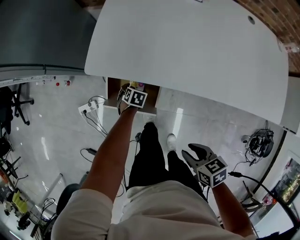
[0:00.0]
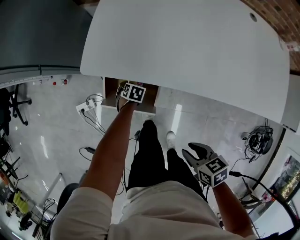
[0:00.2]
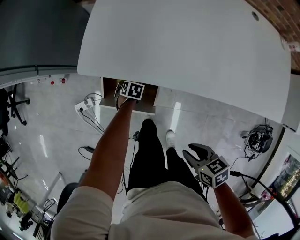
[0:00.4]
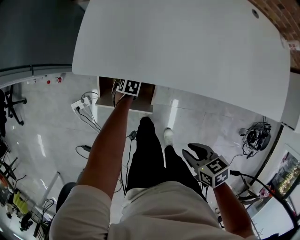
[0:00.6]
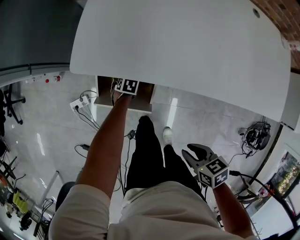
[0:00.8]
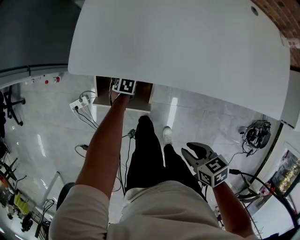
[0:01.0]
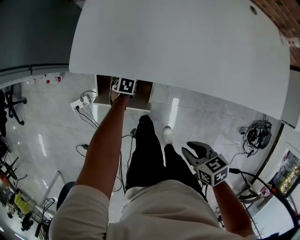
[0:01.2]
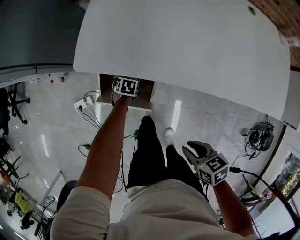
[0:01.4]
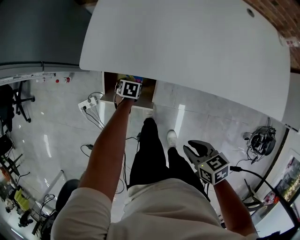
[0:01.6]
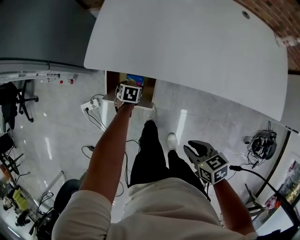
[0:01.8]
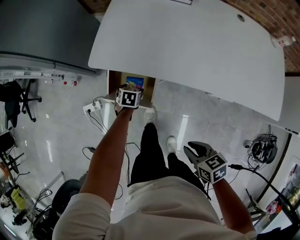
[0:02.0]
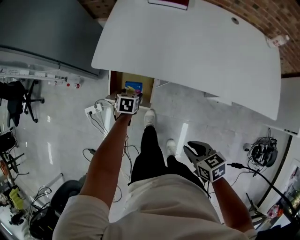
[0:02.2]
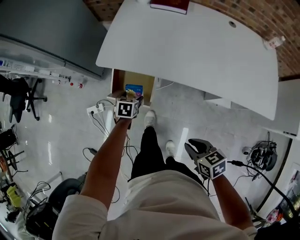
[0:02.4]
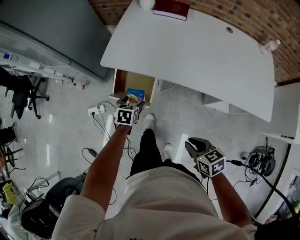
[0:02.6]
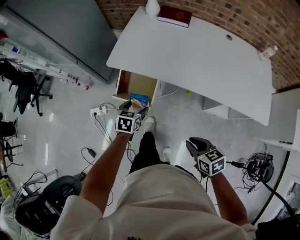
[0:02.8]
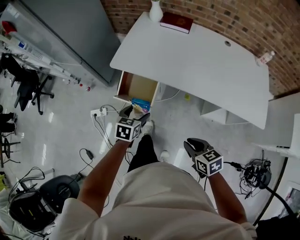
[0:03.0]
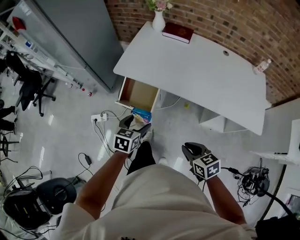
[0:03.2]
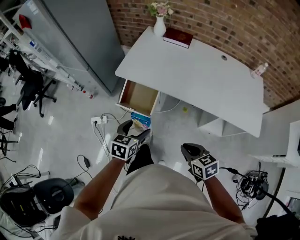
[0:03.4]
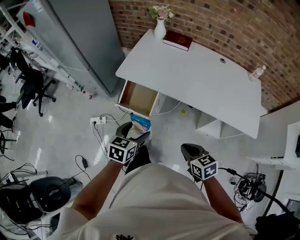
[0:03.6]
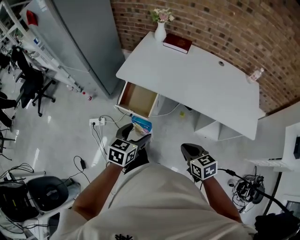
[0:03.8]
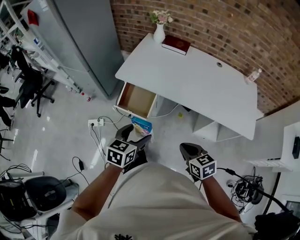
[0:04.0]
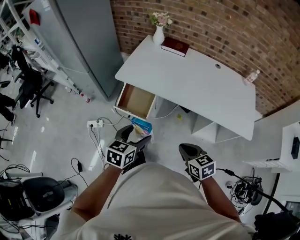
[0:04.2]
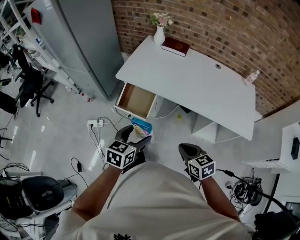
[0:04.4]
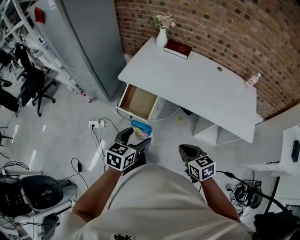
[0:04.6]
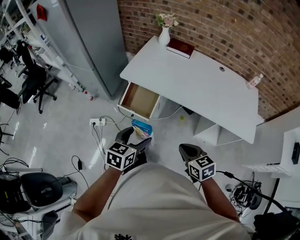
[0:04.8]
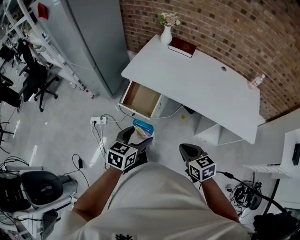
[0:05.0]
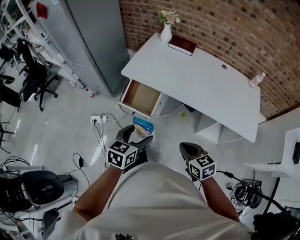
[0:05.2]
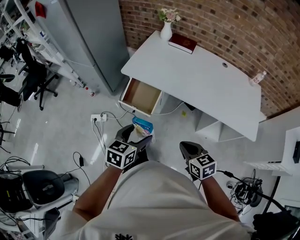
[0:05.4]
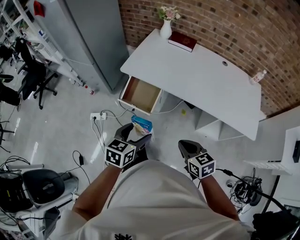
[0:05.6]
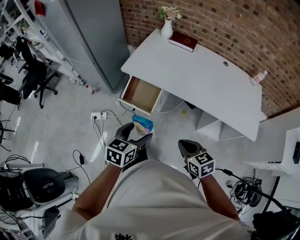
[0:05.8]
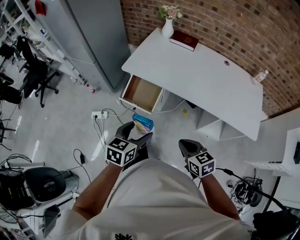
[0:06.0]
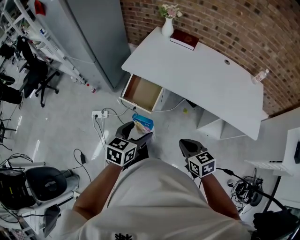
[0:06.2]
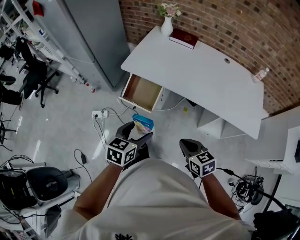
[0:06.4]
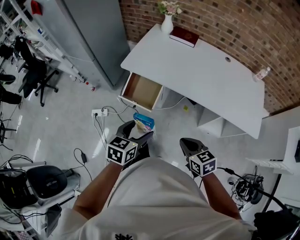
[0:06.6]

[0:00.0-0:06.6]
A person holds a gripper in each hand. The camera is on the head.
0.0 to 1.6 s: The left gripper moves approximately 10 cm downward and comes back.
1.6 to 3.2 s: The right gripper heads upward and backward, covering roughly 20 cm, and changes its angle by approximately 20 degrees, while the left gripper goes roughly 50 cm upward and backward, and angles its fingers upward, by approximately 30 degrees.
3.2 to 5.0 s: The right gripper changes place by roughly 5 cm. Meanwhile the left gripper shifts some 15 cm backward and upward.
5.0 to 6.6 s: The grippers make only small movements.

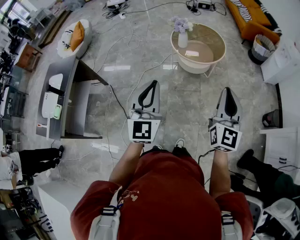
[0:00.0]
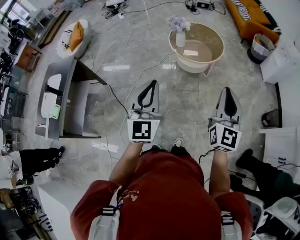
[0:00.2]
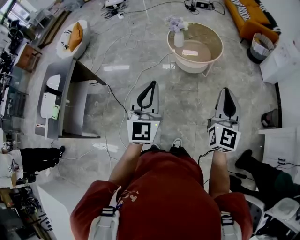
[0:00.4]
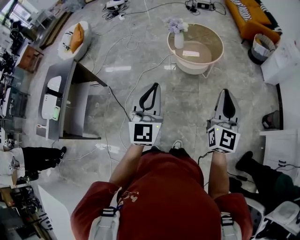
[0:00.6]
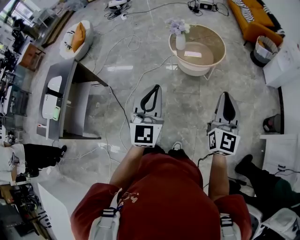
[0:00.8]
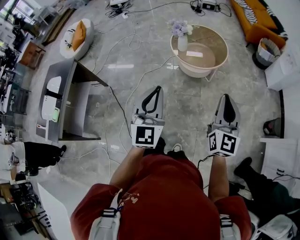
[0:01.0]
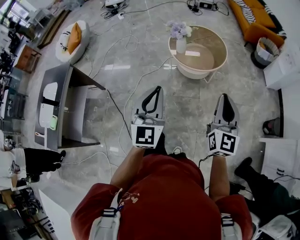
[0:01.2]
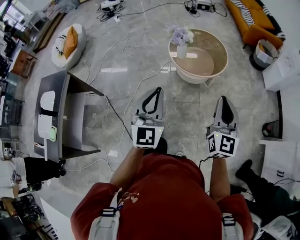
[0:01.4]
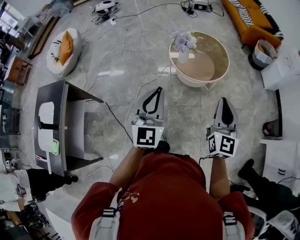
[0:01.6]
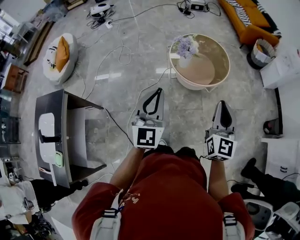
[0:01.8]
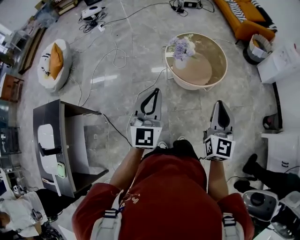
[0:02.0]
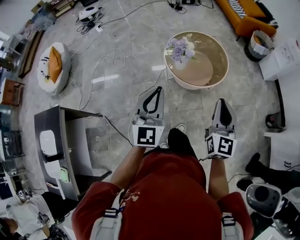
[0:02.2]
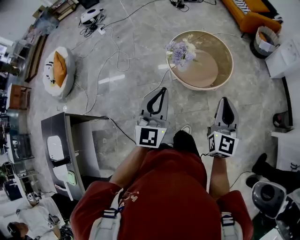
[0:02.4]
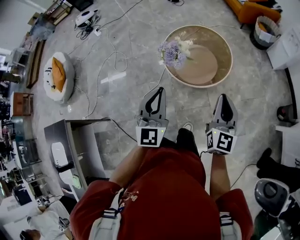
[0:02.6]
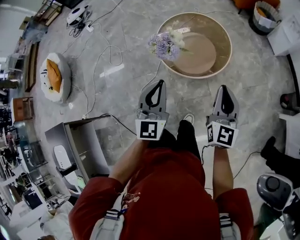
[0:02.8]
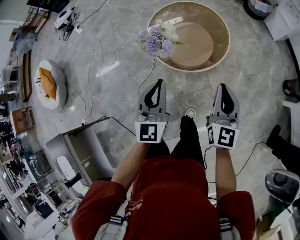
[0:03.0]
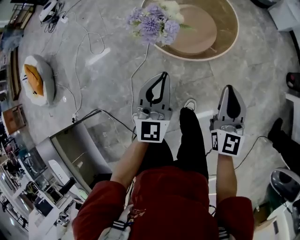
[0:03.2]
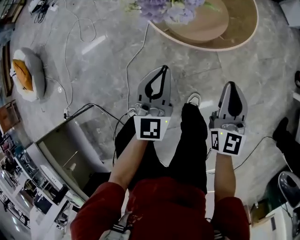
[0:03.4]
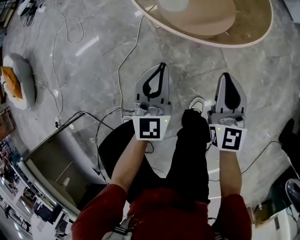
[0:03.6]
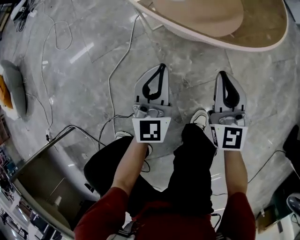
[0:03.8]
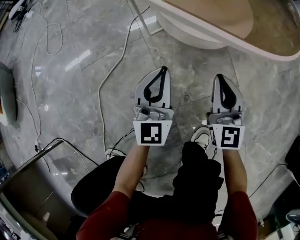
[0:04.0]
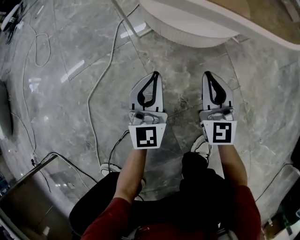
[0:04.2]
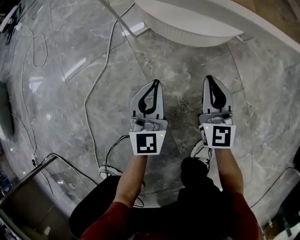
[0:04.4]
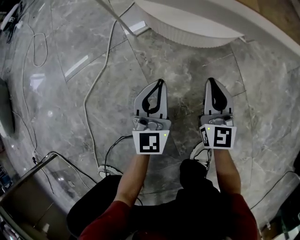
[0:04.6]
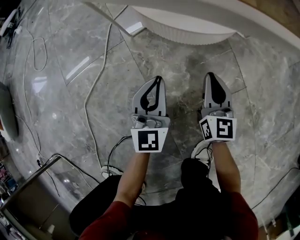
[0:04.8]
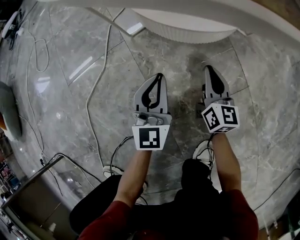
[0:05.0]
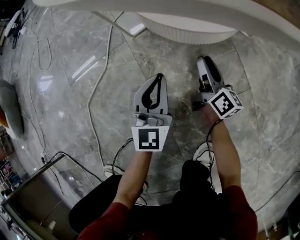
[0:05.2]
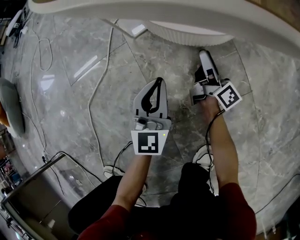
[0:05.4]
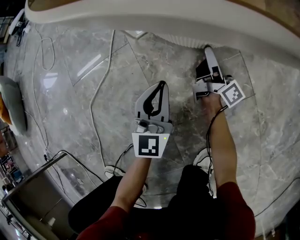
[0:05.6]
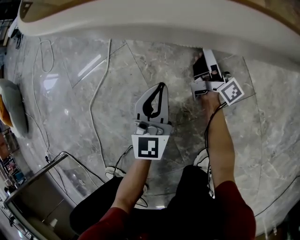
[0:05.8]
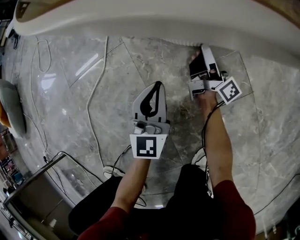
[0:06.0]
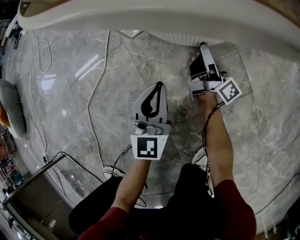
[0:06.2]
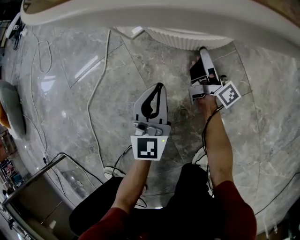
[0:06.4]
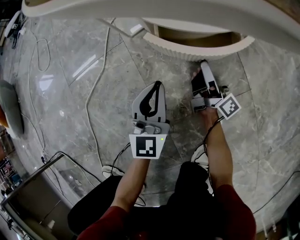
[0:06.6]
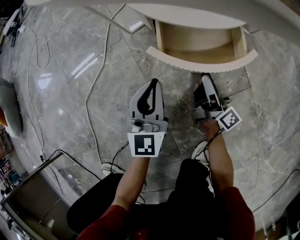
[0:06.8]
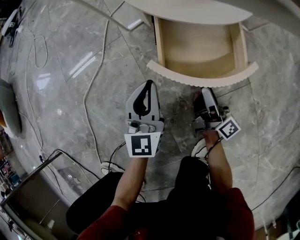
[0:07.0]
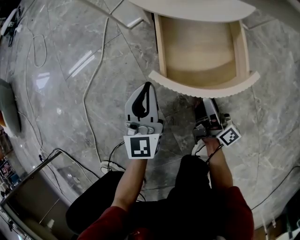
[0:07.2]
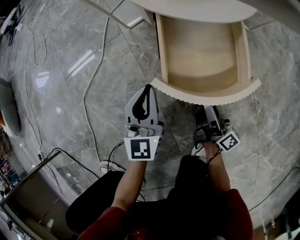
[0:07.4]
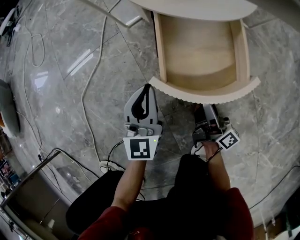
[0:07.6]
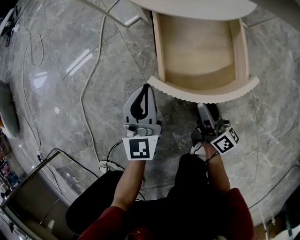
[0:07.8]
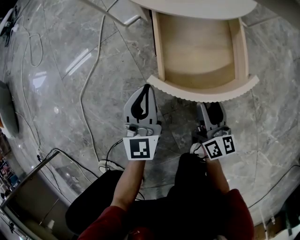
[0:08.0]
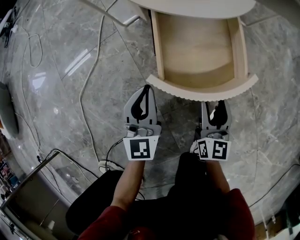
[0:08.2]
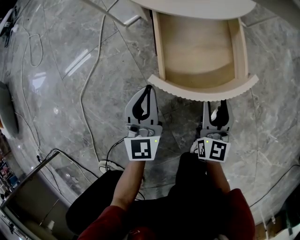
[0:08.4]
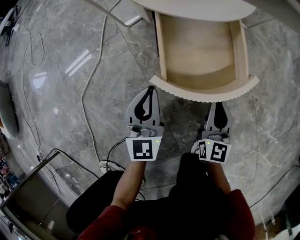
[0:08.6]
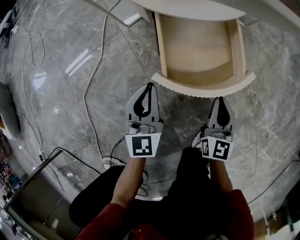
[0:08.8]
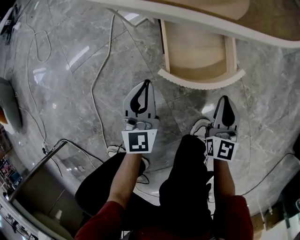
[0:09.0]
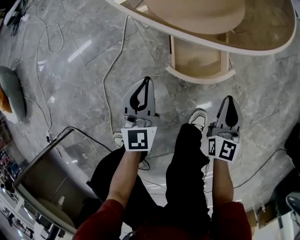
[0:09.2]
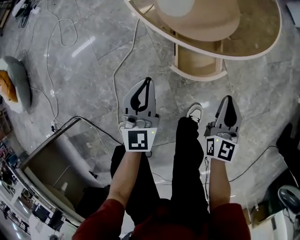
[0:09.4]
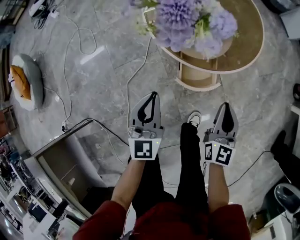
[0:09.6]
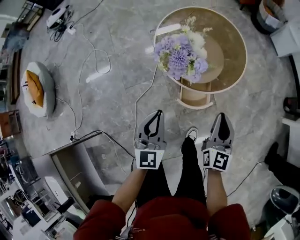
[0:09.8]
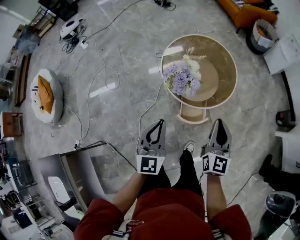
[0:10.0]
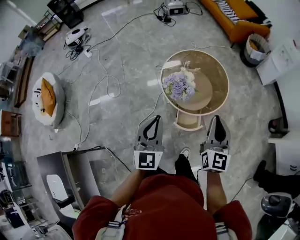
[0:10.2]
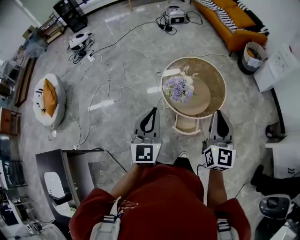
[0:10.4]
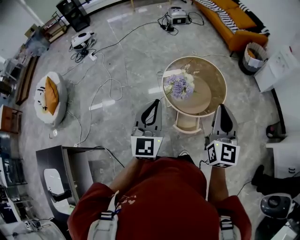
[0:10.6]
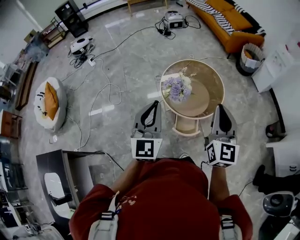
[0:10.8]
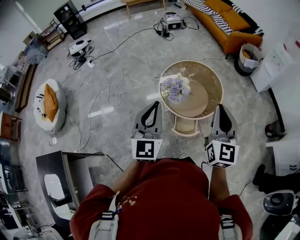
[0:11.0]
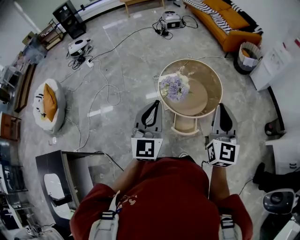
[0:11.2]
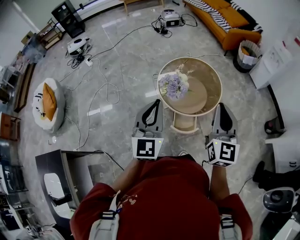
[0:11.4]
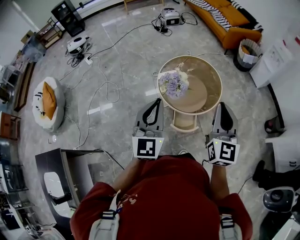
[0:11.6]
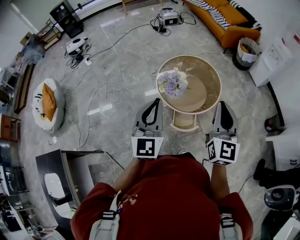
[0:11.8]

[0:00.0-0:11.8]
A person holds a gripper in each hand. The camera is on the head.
0.0 to 1.4 s: The grippers both shift forward by roughly 15 cm.
1.4 to 3.0 s: Both grippers move forward and downward, about 30 cm. The right gripper swivels about 20 degrees, while the left gripper changes its angle by approximately 20 degrees.
3.0 to 4.4 s: Both grippers move downward, roughly 70 cm.
4.4 to 6.0 s: The right gripper moves forward and downward, about 15 cm, twists some 80 degrees clockwise, seen from behind, and opens its fingers. Meanwhile the left gripper changes place by roughly 5 cm.
6.0 to 7.4 s: The left gripper moves approximately 5 cm, while the right gripper moves backward, about 20 cm.
7.4 to 8.8 s: The right gripper ends up approximately 5 cm from where it was, twists about 70 degrees counterclockwise, seen from behind, and closes.
8.8 to 10.4 s: Both grippers travel together upward, roughly 90 cm. The right gripper rotates some 20 degrees.
10.4 to 11.8 s: The left gripper shifts by about 5 cm. The right gripper moves roughly 5 cm.

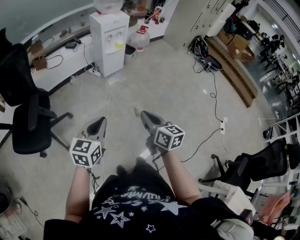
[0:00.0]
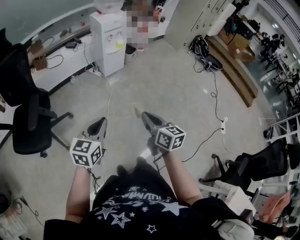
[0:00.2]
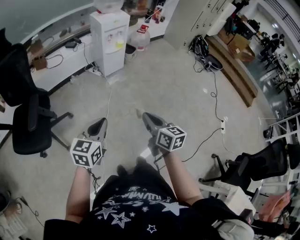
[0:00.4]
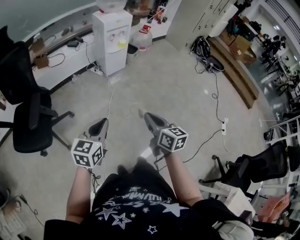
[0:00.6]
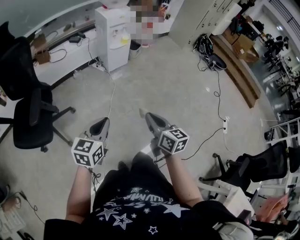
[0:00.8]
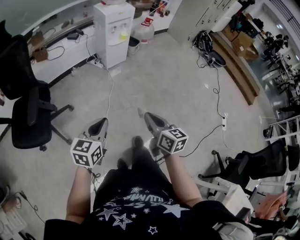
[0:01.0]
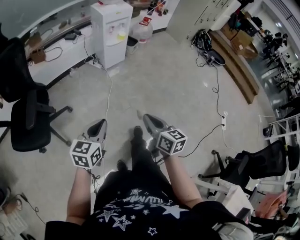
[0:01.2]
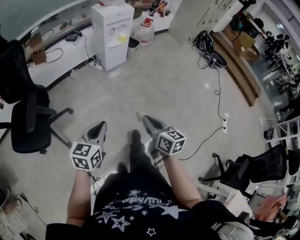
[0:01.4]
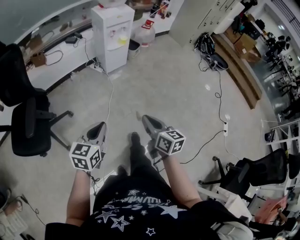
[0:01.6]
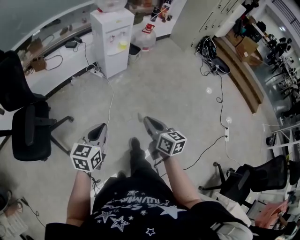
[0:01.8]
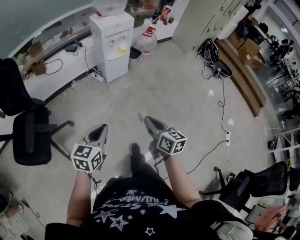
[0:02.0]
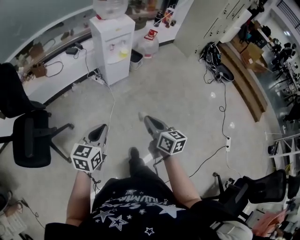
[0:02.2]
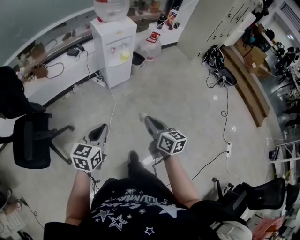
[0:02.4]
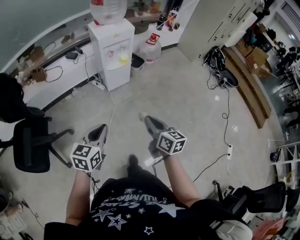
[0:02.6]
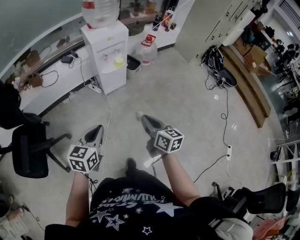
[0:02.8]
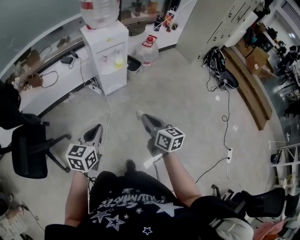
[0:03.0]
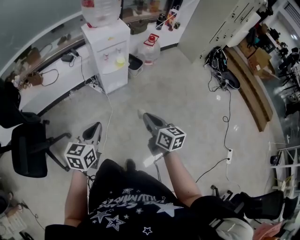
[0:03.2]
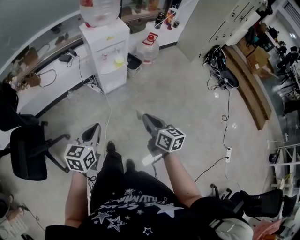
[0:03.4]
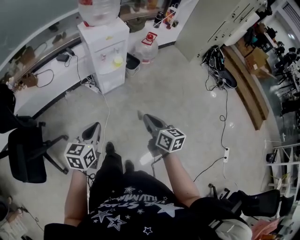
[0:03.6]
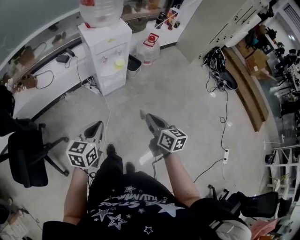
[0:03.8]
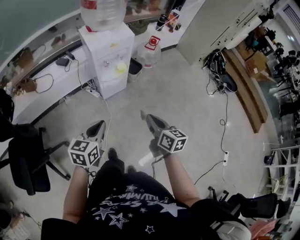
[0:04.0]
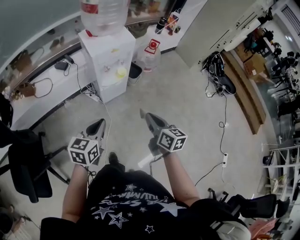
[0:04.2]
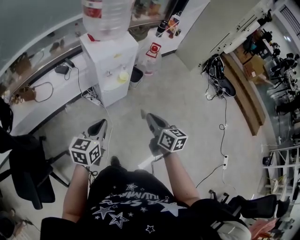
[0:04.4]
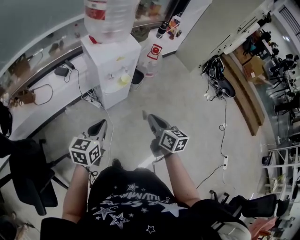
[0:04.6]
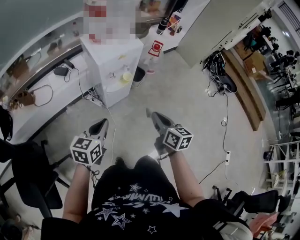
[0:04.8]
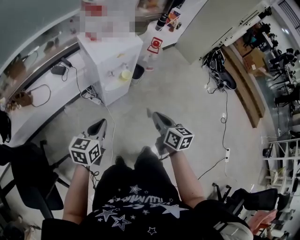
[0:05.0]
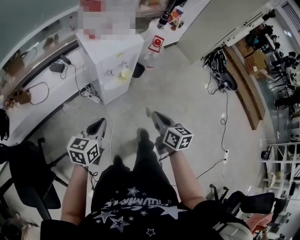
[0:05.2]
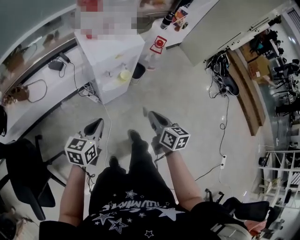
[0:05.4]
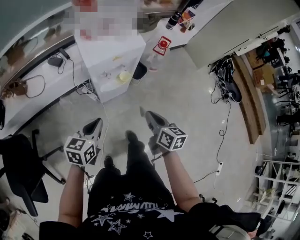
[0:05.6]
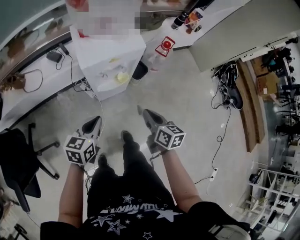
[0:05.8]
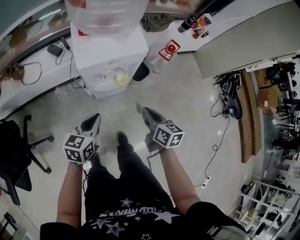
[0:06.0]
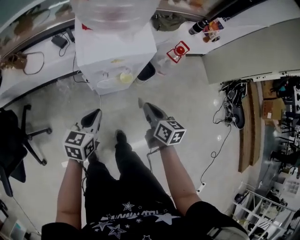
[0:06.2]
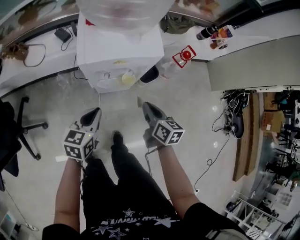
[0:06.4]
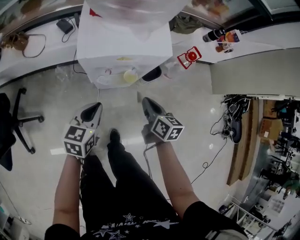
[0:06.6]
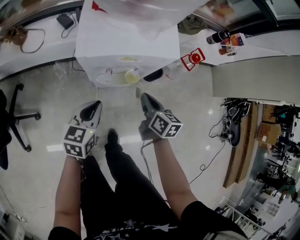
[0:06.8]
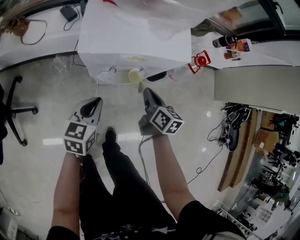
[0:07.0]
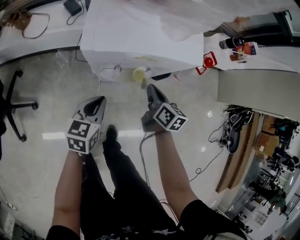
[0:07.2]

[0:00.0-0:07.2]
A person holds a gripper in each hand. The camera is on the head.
0.0 to 1.4 s: The left gripper changes place by about 5 cm, while the right gripper ends up approximately 5 cm from where it was.
1.4 to 2.8 s: The grippers both shift forward by some 30 cm.
2.8 to 4.4 s: Both grippers move forward, some 25 cm.
4.4 to 5.8 s: The two grippers go about 20 cm forward and downward.
5.8 to 7.2 s: The right gripper goes approximately 30 cm forward and downward, while the left gripper is displaced downward and forward by approximately 20 cm.
